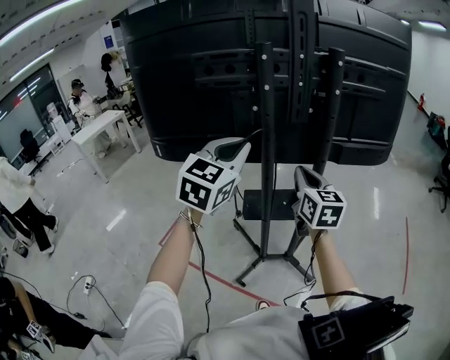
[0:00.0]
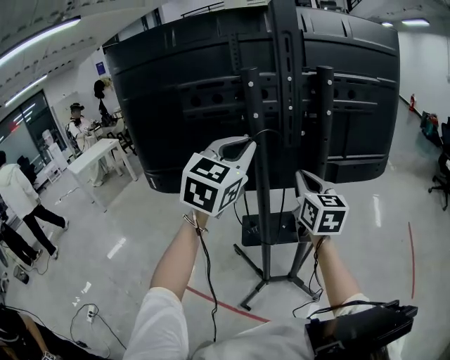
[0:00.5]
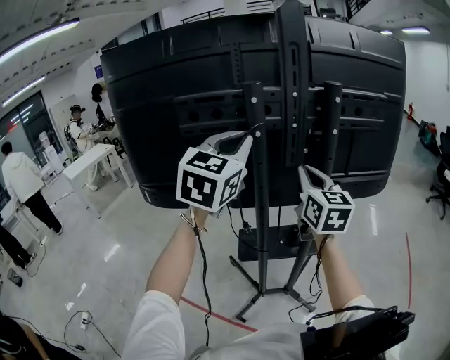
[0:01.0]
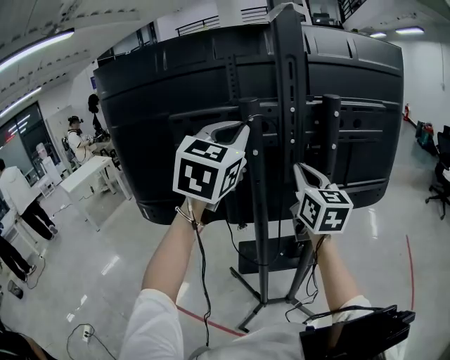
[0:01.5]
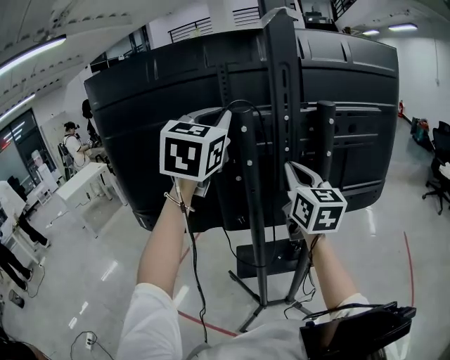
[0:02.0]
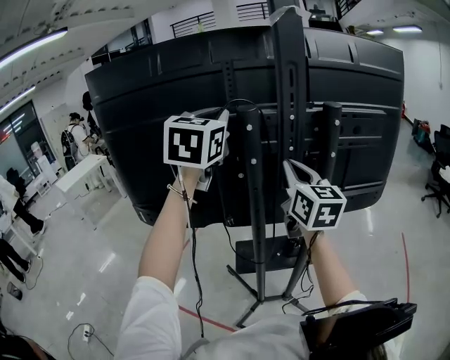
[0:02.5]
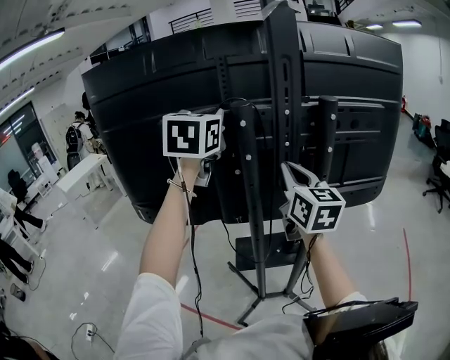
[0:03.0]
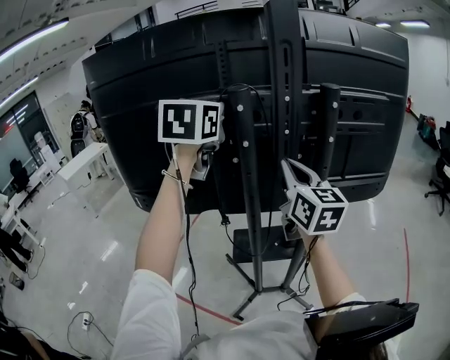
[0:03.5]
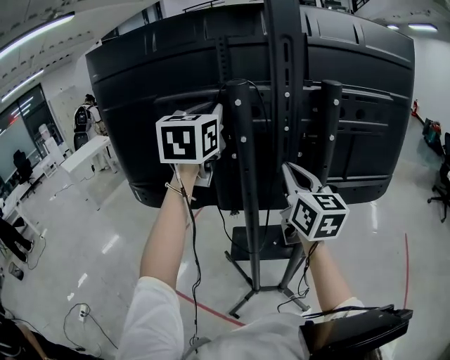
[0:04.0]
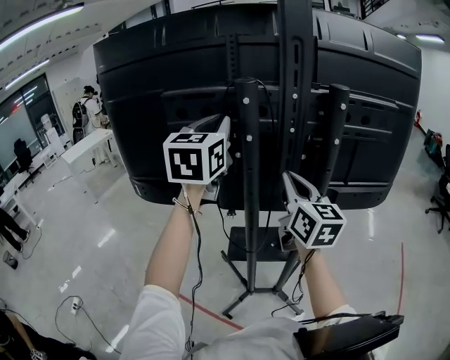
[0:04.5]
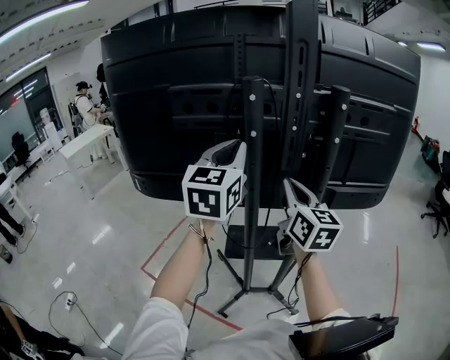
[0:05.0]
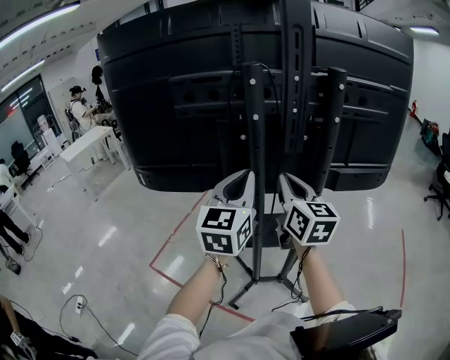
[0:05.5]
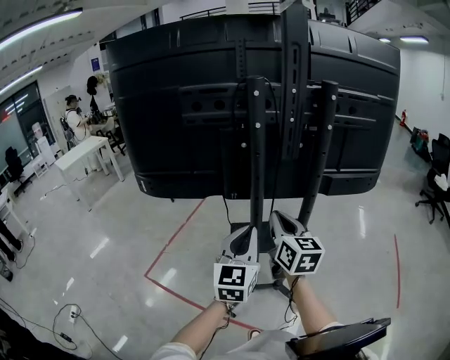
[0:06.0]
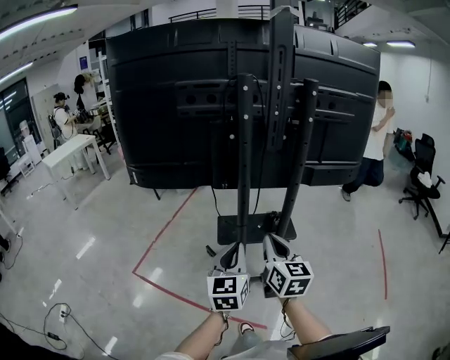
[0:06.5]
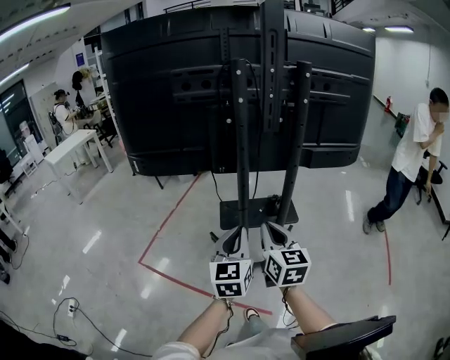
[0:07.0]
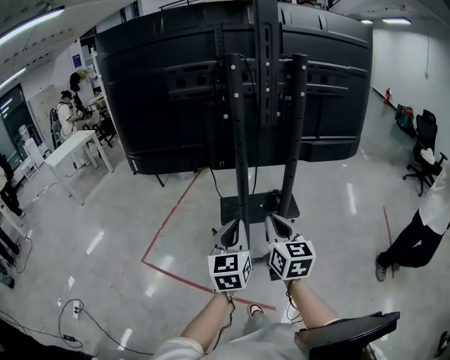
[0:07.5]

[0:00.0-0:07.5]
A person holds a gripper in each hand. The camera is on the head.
0:00.0 to 0:02.0: Both grippers travel together upward and forward, about 25 cm.
0:02.0 to 0:04.0: The right gripper changes place by roughly 5 cm. Meanwhile the left gripper travels downward by roughly 5 cm.
0:04.0 to 0:05.5: The left gripper heads downward and backward, covering roughly 20 cm. Meanwhile the right gripper heads downward, covering some 5 cm.
0:05.5 to 0:07.5: The two grippers go roughly 25 cm backward and downward.

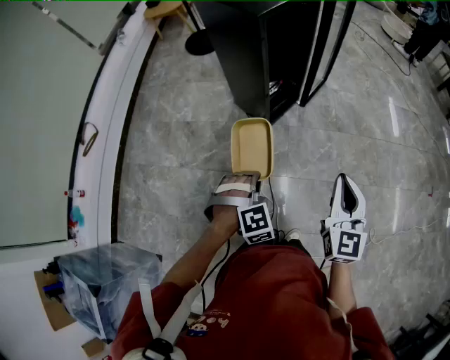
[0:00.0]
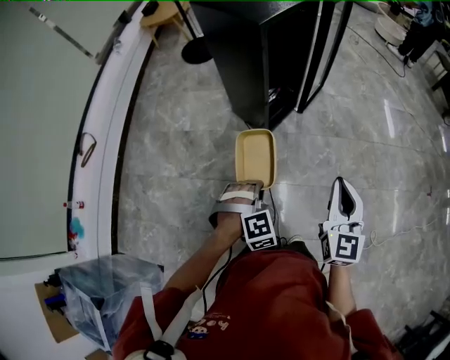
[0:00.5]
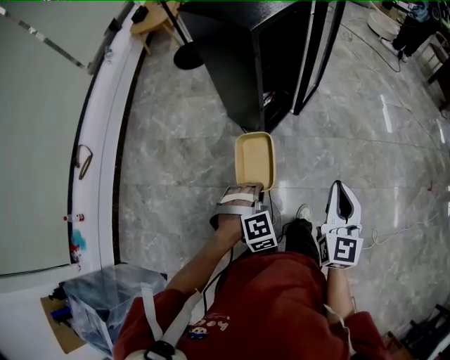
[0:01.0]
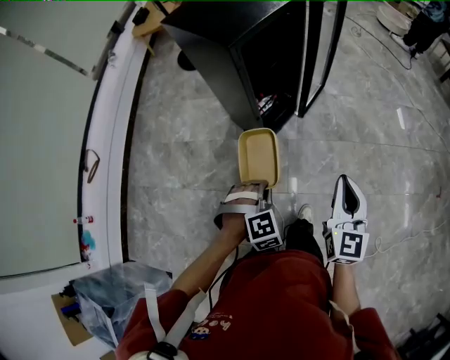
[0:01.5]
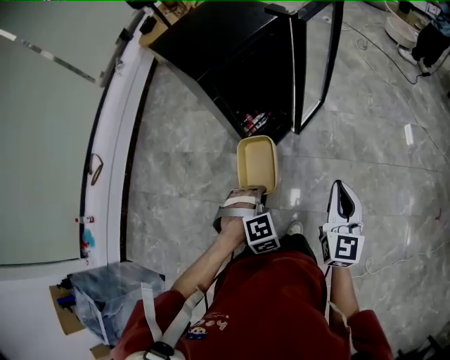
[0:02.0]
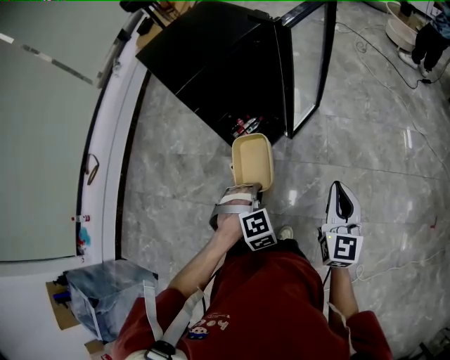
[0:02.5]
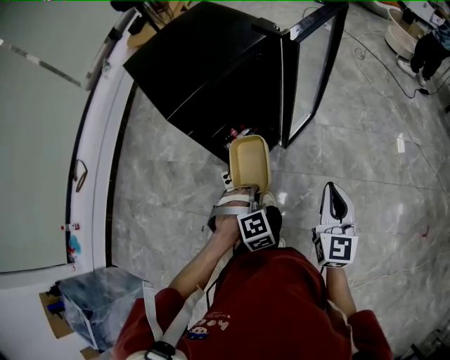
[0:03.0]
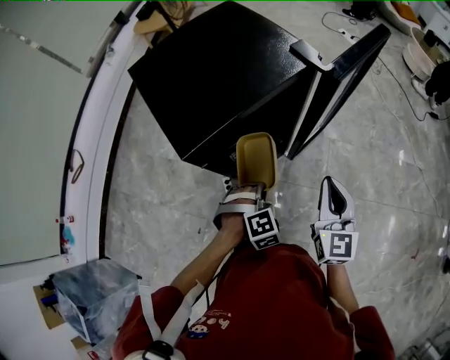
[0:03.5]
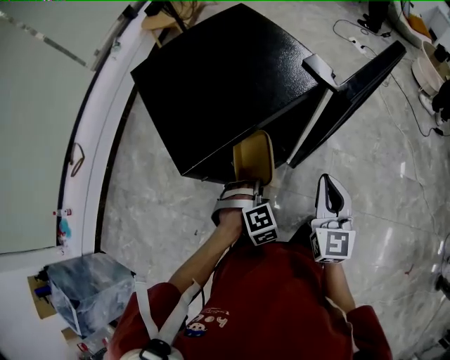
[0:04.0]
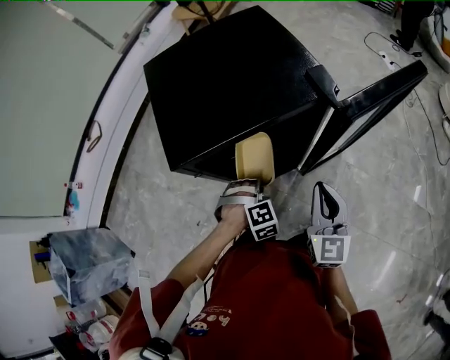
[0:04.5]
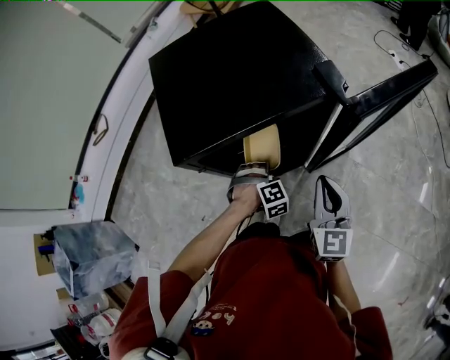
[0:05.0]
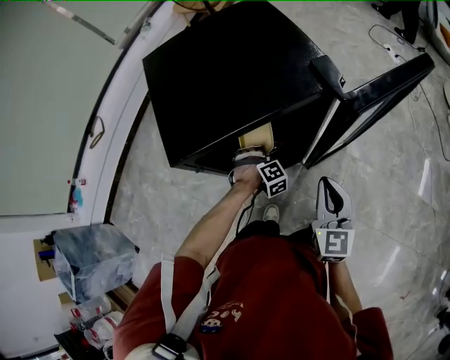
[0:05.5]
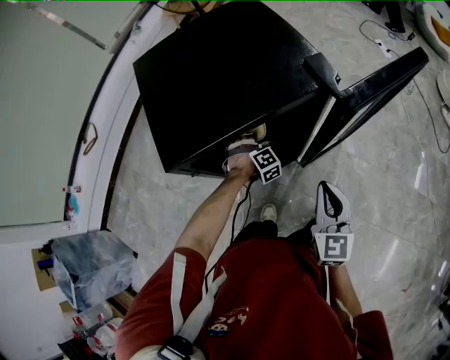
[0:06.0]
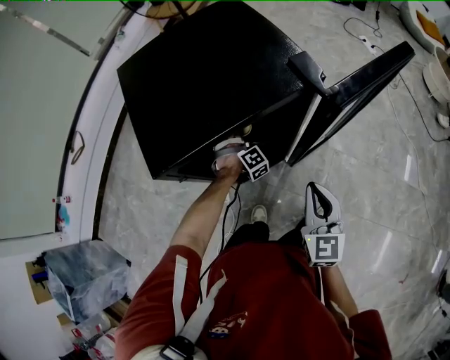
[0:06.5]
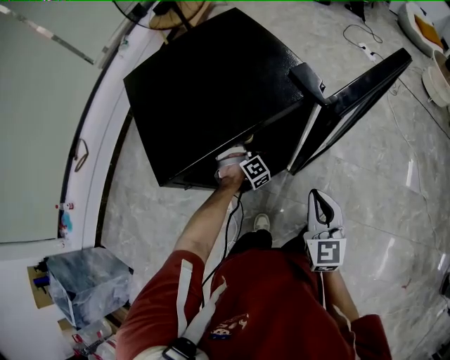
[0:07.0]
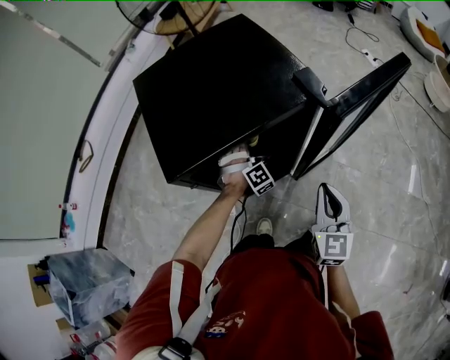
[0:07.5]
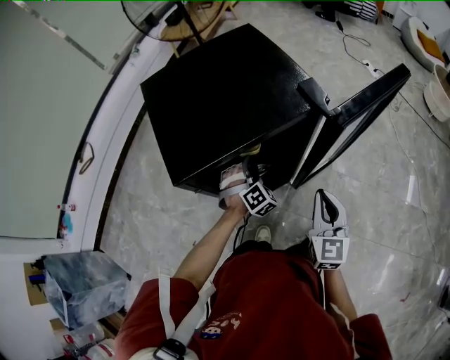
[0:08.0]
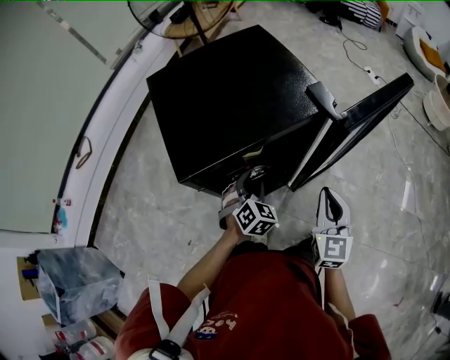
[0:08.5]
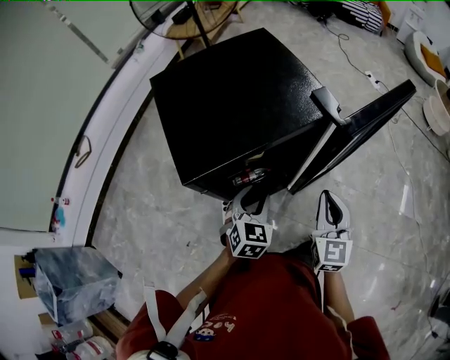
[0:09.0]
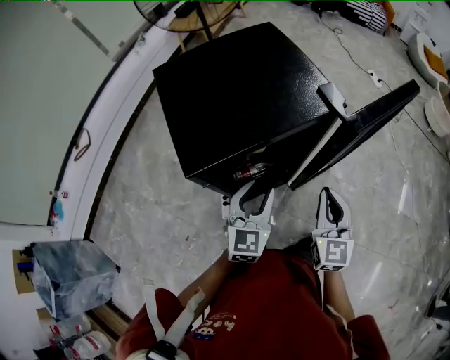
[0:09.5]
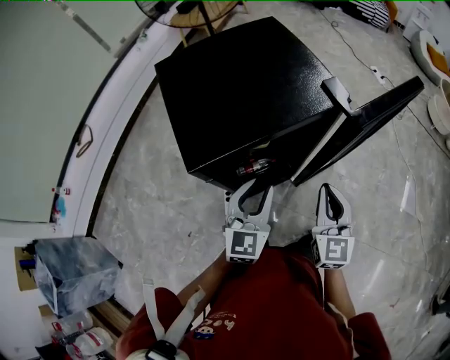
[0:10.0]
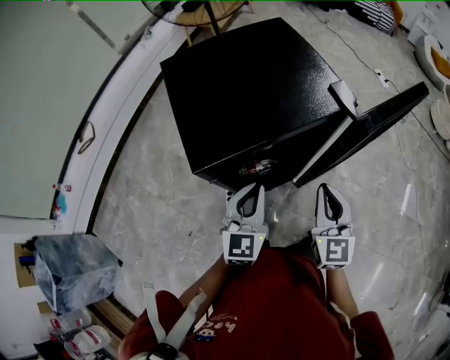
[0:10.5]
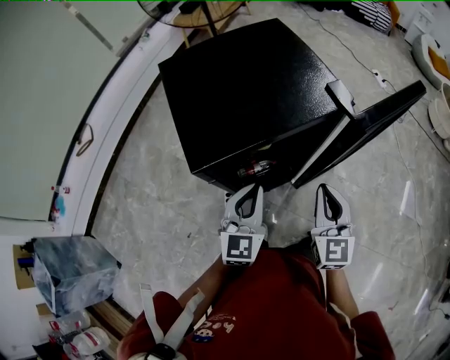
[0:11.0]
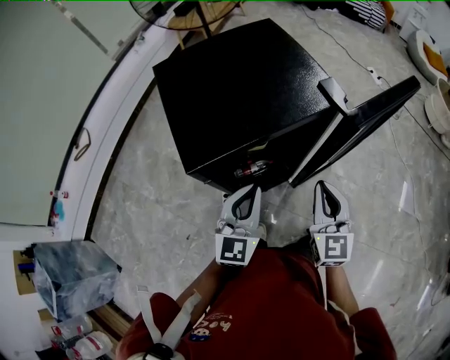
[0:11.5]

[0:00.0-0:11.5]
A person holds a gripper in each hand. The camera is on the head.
0:00.0 to 0:02.0: The grippers both shift forward and to the right by about 25 cm.
0:02.0 to 0:04.0: The two grippers go approximately 30 cm forward.
0:04.0 to 0:06.0: The right gripper is displaced downward by roughly 5 cm. Meanwhile the left gripper moves some 20 cm.
0:06.0 to 0:07.5: The left gripper is displaced upward by about 5 cm, and opens.
0:07.5 to 0:09.5: The left gripper goes approximately 25 cm upward and backward, and rotates around the line of its fingers by some 60 degrees, counterclockwise from behind.
0:09.5 to 0:11.5: The left gripper closes its fingers.

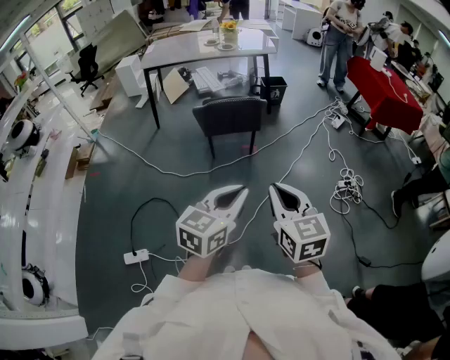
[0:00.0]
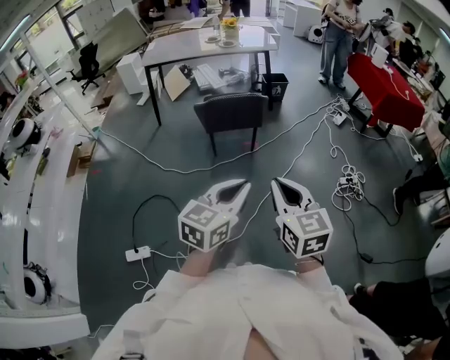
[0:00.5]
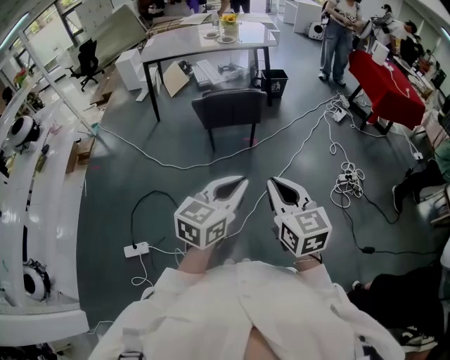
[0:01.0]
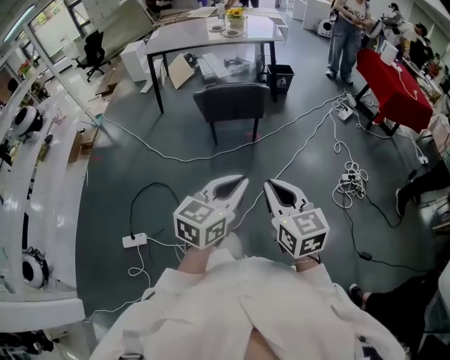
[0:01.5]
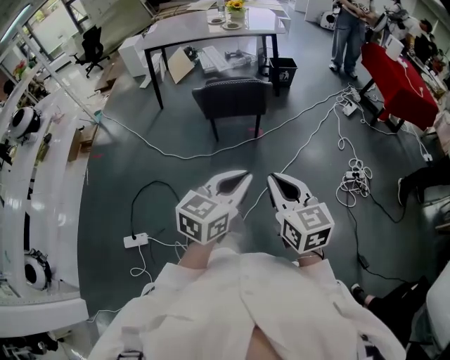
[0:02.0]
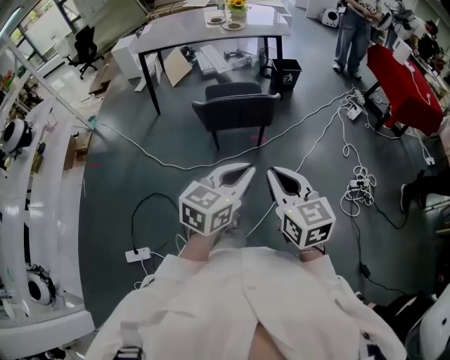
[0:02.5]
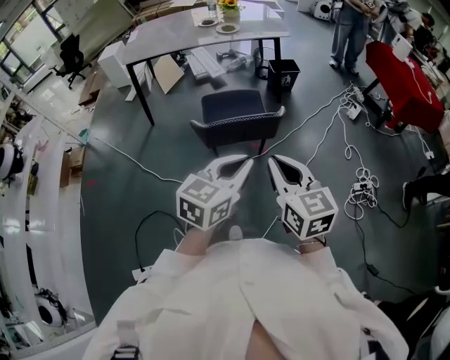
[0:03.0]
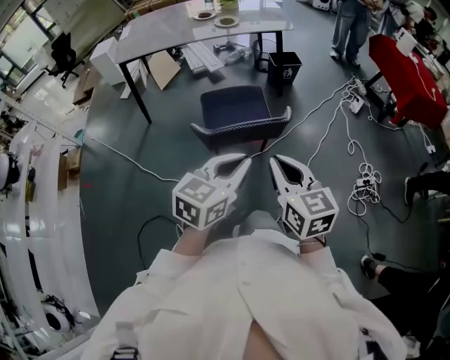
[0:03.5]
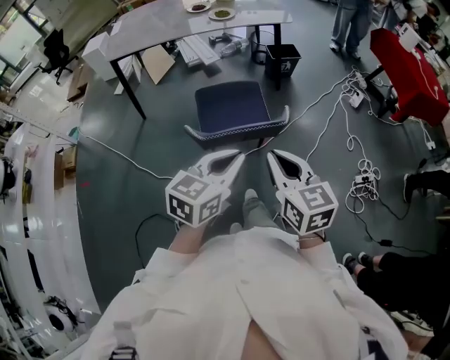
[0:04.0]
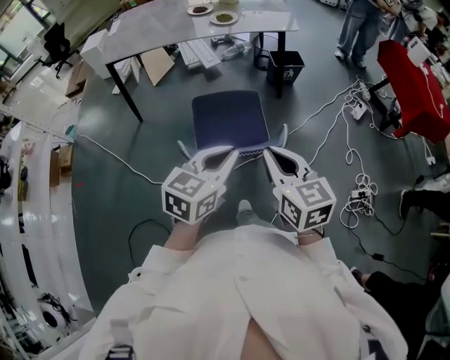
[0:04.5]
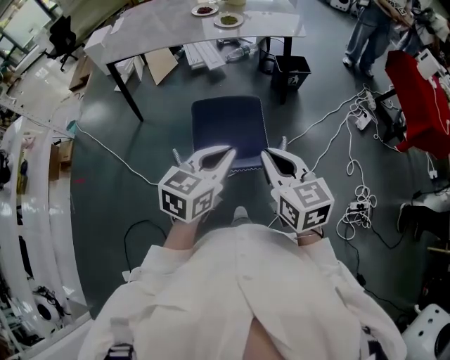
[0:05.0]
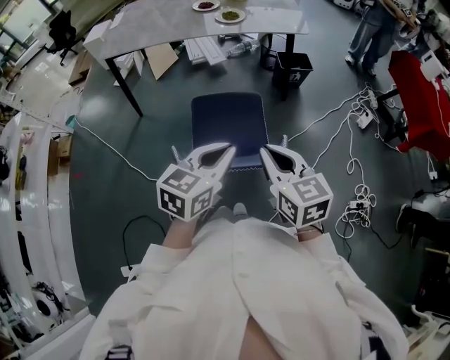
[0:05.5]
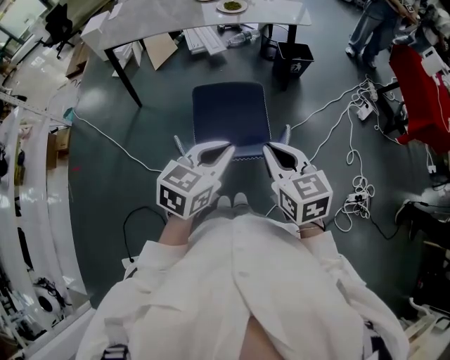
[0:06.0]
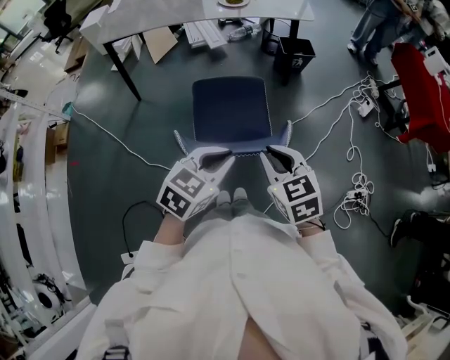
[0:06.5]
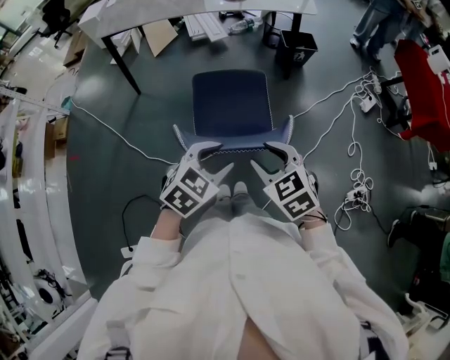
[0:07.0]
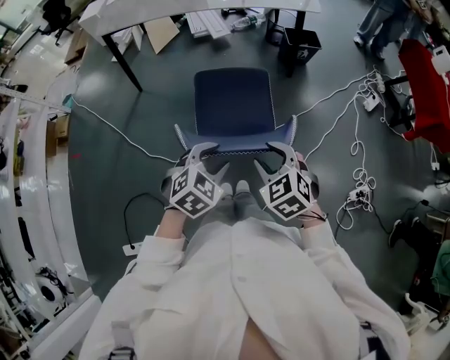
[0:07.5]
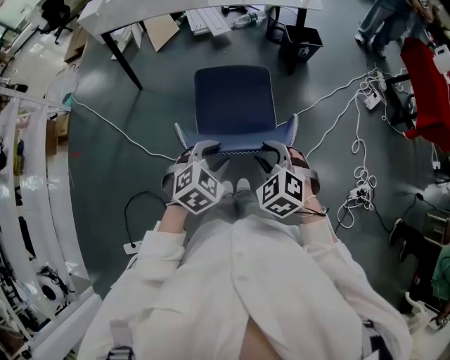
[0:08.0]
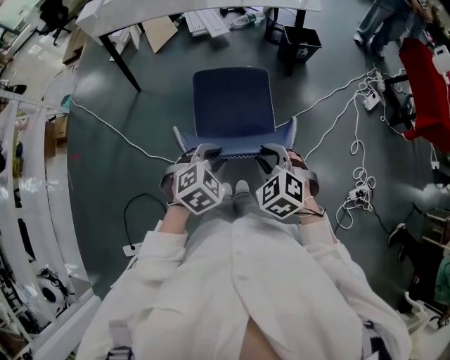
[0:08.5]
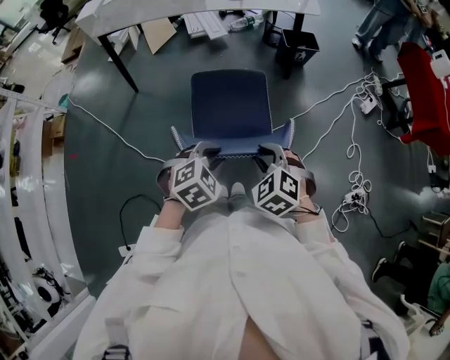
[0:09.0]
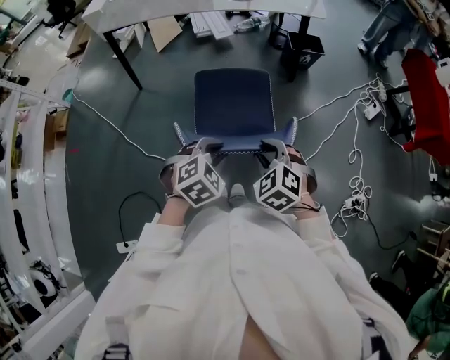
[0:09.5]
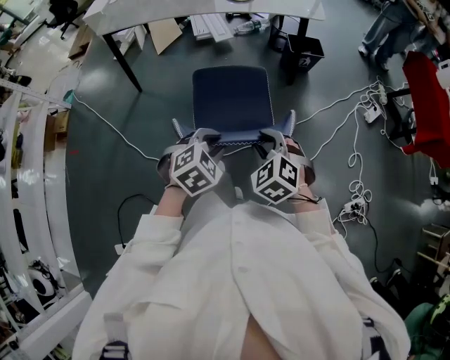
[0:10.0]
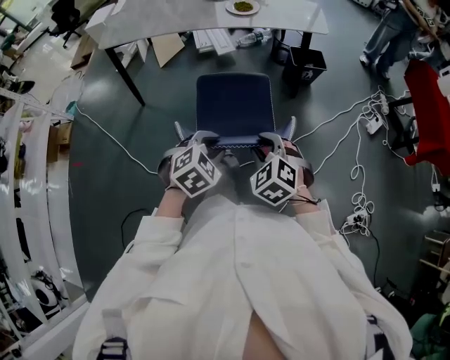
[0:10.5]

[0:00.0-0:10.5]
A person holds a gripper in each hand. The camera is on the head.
0:00.0 to 0:02.0: The grippers both shift forward by roughly 5 cm.
0:02.0 to 0:04.0: The pair of grippers is taken forward, about 40 cm.
0:04.0 to 0:06.5: The two grippers go some 15 cm forward and downward. The right gripper turns by approximately 20 degrees.
0:06.5 to 0:08.5: Both grippers move downward, approximately 10 cm. The left gripper changes its angle by roughly 30 degrees, and opens its fingers, while the right gripper swivels approximately 30 degrees, and opens its fingers.
0:08.5 to 0:10.5: Both grippers travel together forward, approximately 10 cm.
